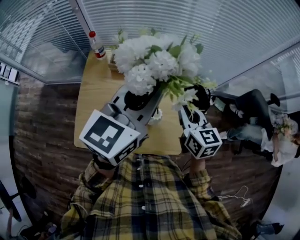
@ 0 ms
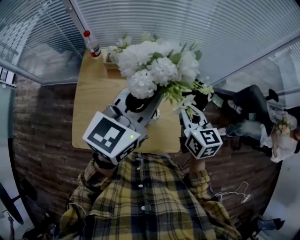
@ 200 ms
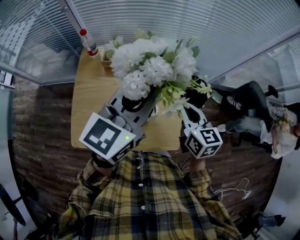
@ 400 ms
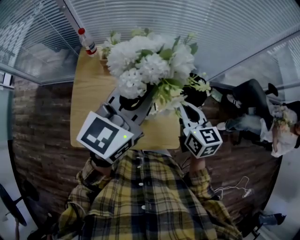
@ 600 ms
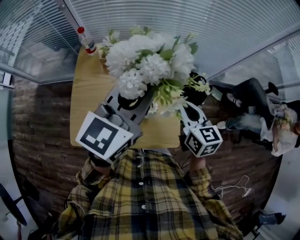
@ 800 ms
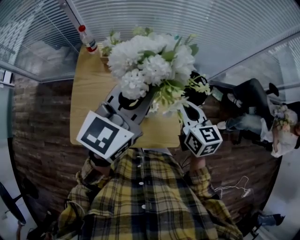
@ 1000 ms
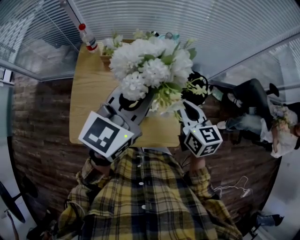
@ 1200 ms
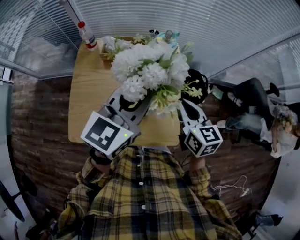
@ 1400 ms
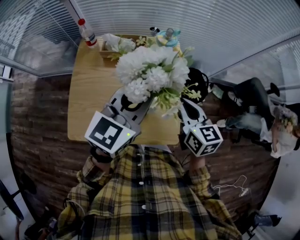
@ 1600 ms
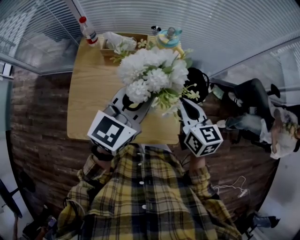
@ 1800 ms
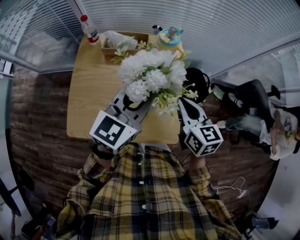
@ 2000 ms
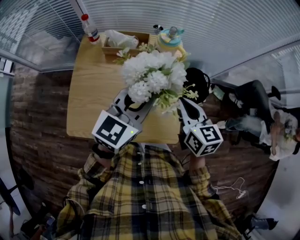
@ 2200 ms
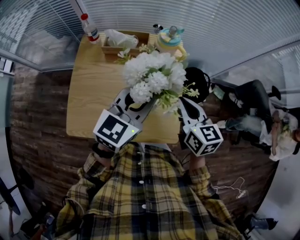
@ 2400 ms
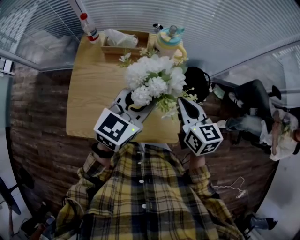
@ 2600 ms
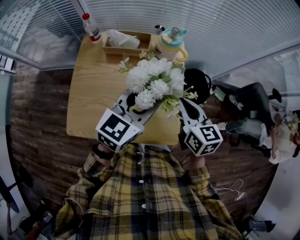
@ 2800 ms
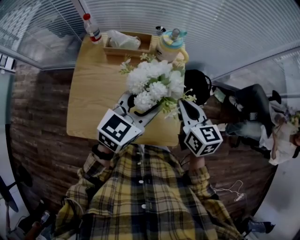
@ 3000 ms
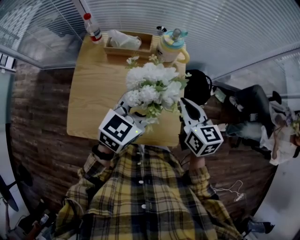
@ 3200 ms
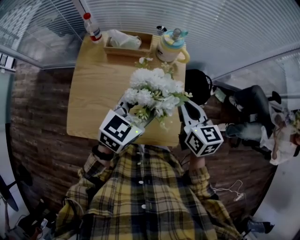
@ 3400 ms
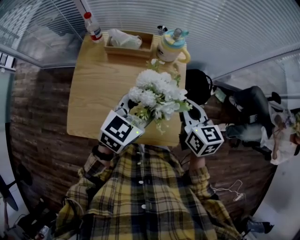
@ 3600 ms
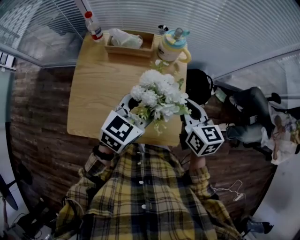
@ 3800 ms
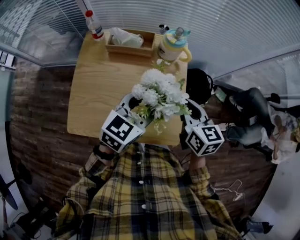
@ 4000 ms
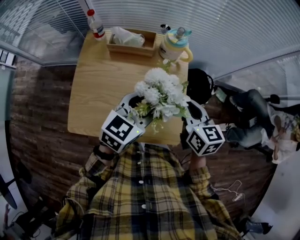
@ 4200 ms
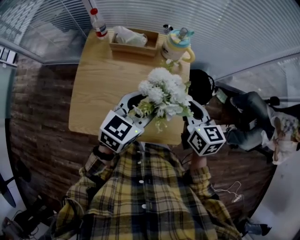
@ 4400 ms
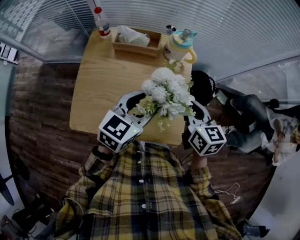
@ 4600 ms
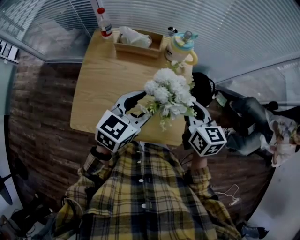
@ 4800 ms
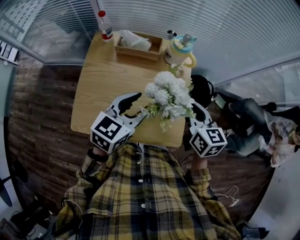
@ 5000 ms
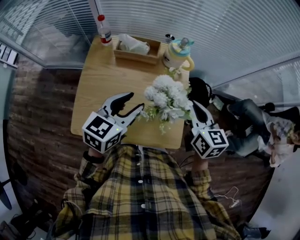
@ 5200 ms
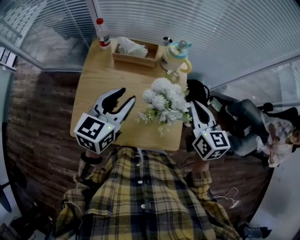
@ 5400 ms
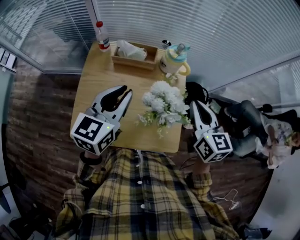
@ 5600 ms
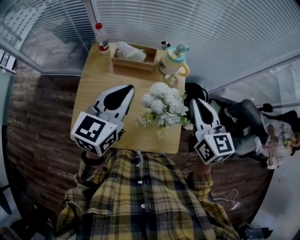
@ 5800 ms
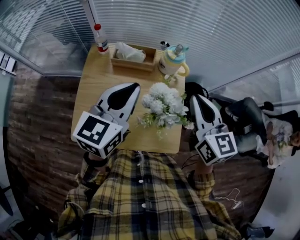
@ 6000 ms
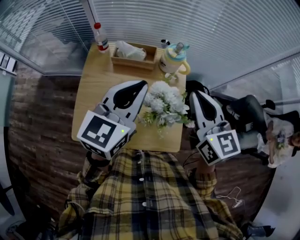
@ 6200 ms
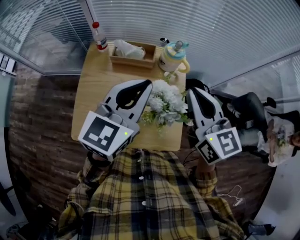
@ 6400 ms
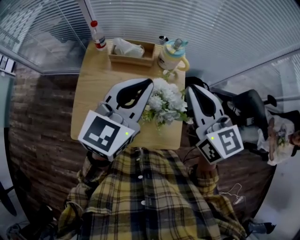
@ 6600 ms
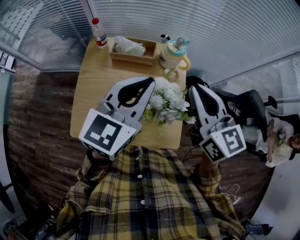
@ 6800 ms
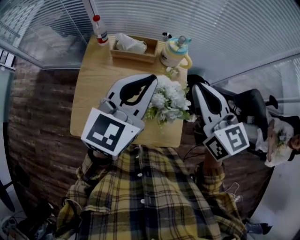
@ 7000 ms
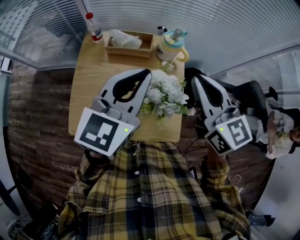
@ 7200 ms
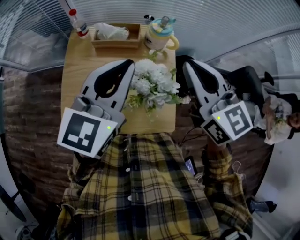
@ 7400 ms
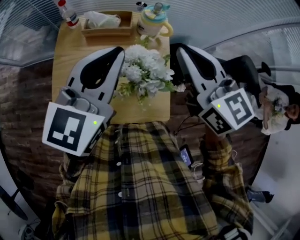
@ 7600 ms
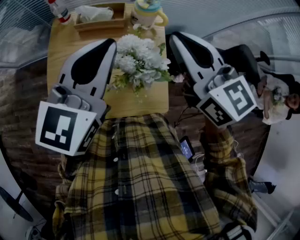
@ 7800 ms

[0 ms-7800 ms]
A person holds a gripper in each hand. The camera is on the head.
0 ms to 1600 ms: The left gripper moves downward, about 10 cm; the right gripper shifts by about 5 cm.
1600 ms to 3200 ms: The left gripper shifts about 10 cm downward, and opens.
3200 ms to 4600 ms: The grippers move only a little.
4600 ms to 6200 ms: The grippers both shift upward by about 15 cm. The left gripper closes up.
6200 ms to 7800 ms: The grippers stay close to where they were, moving slightly.

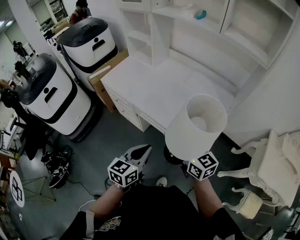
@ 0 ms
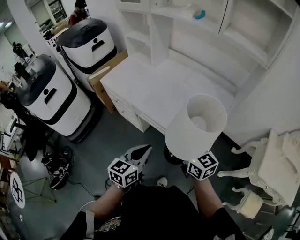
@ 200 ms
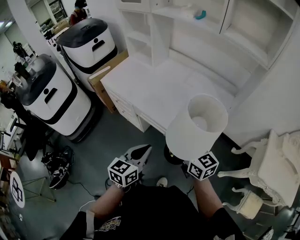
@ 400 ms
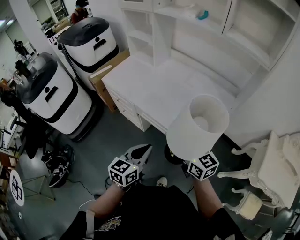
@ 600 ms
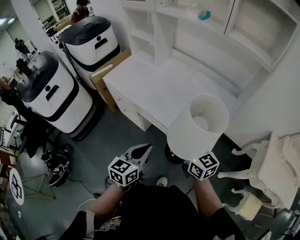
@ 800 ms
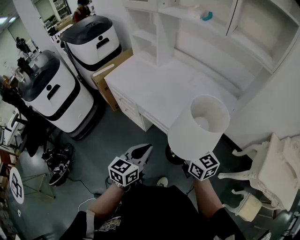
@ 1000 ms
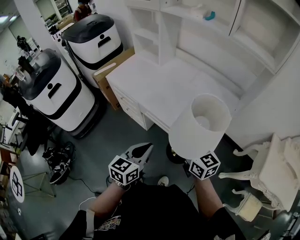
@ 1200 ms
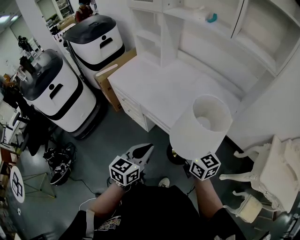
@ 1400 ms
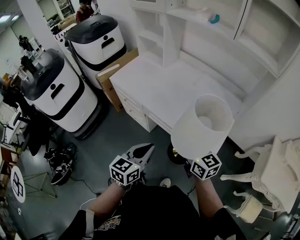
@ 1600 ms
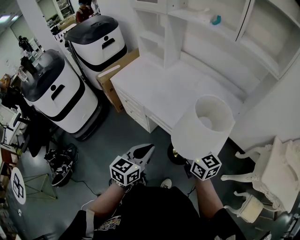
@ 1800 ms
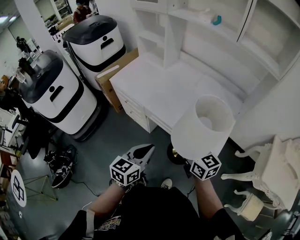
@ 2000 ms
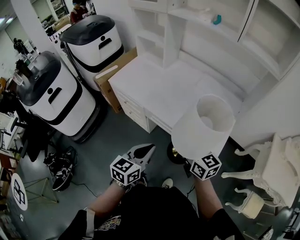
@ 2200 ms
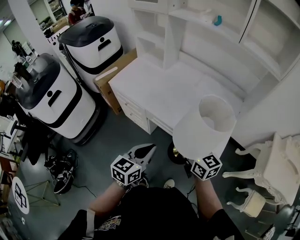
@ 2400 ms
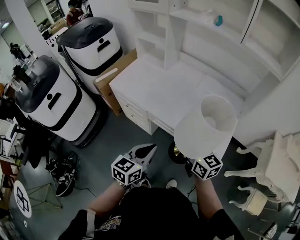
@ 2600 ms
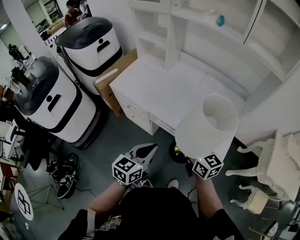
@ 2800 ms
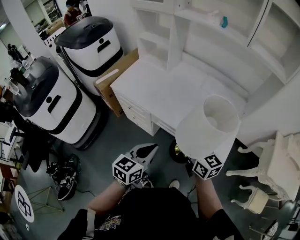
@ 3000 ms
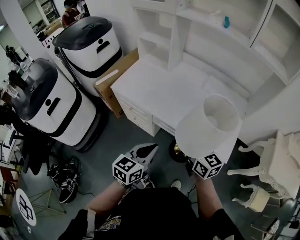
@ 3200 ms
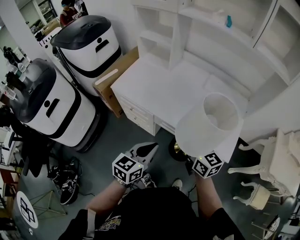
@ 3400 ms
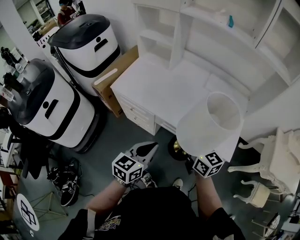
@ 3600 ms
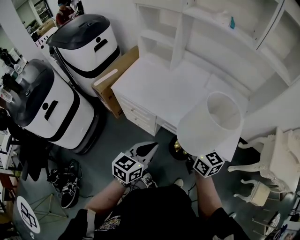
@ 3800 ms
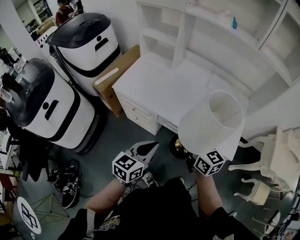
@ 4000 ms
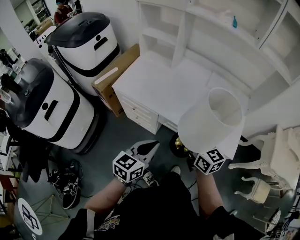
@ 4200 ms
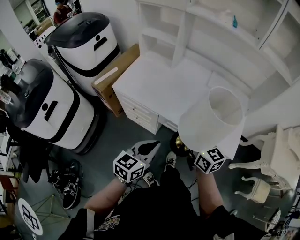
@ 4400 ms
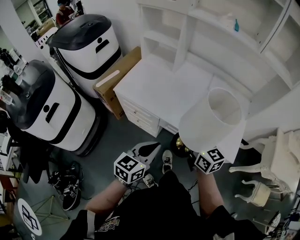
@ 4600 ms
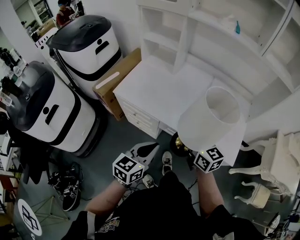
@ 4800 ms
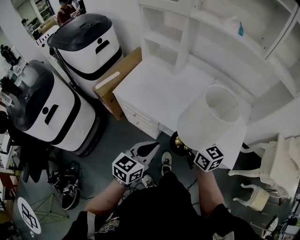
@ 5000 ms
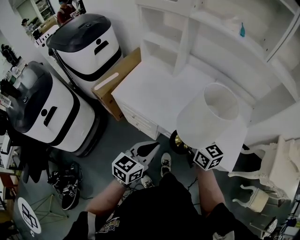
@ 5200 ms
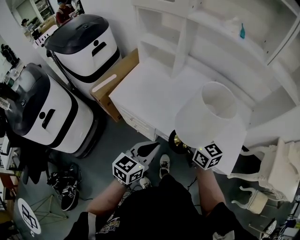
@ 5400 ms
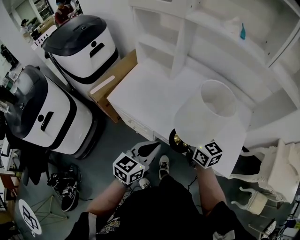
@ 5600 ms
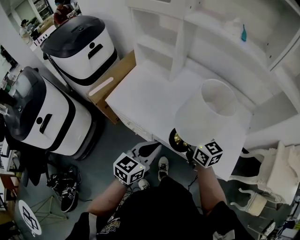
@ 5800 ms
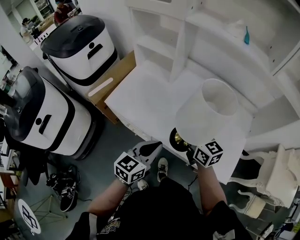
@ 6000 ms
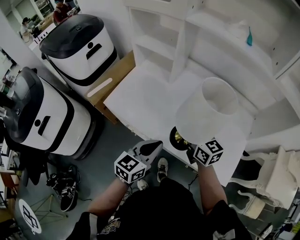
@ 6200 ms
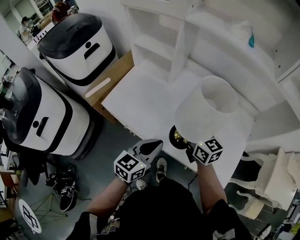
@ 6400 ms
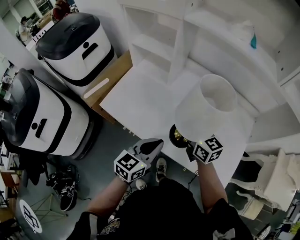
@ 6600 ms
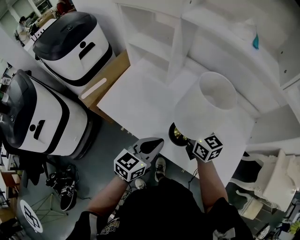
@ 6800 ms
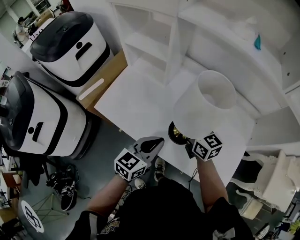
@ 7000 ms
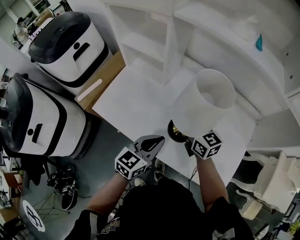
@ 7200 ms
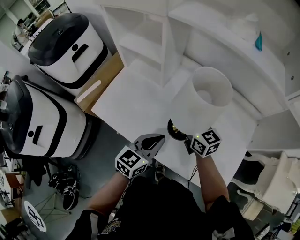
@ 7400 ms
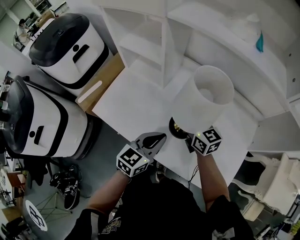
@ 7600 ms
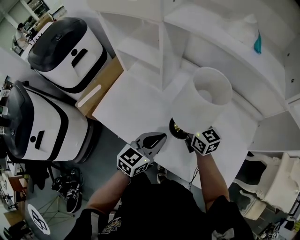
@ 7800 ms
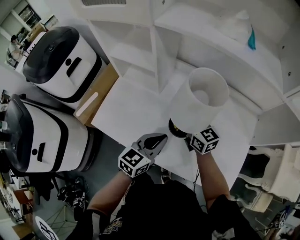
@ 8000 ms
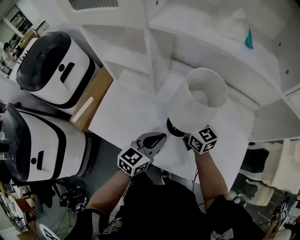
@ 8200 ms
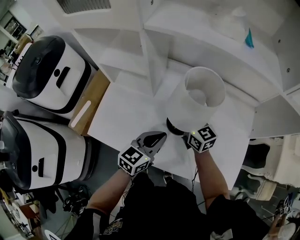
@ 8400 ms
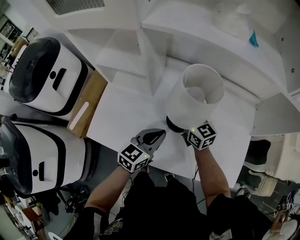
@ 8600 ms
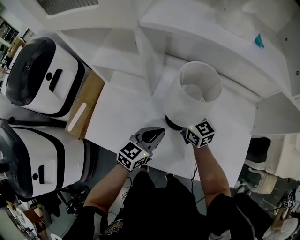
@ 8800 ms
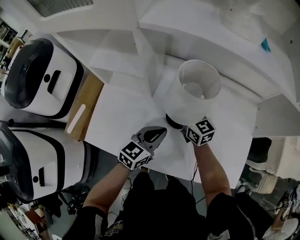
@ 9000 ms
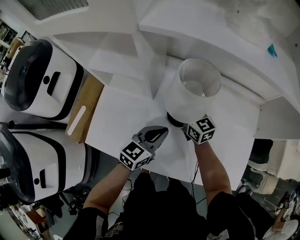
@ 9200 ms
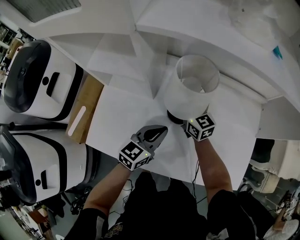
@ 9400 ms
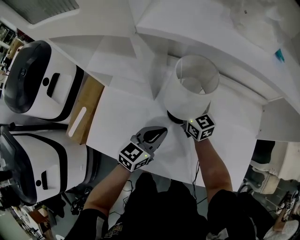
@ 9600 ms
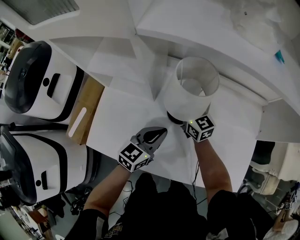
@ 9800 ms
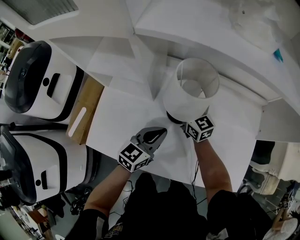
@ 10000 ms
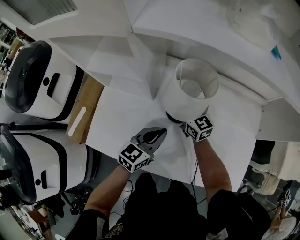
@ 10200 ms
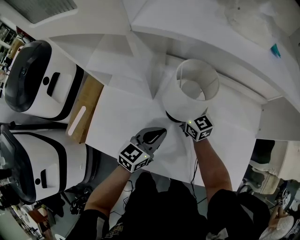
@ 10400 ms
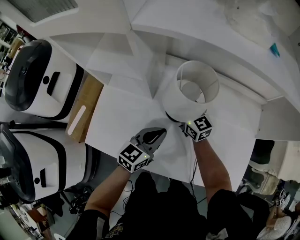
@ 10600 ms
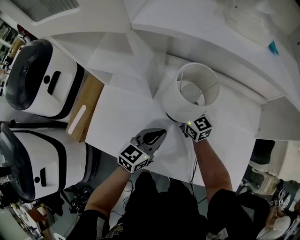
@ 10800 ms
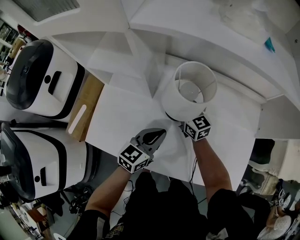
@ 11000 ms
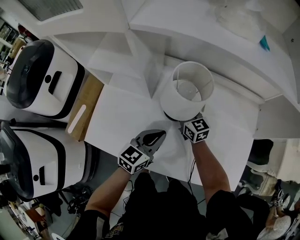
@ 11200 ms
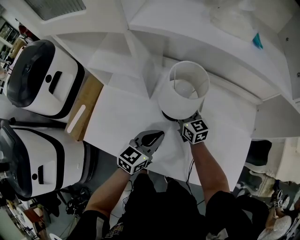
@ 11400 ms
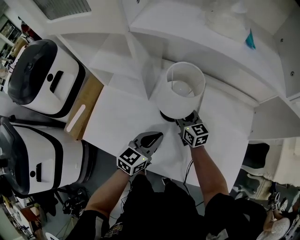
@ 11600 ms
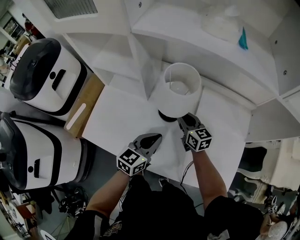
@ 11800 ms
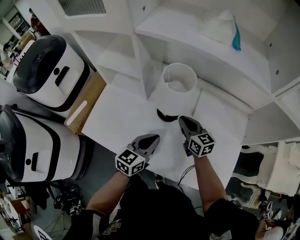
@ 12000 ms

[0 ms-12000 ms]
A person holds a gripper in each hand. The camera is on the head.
0 ms to 1600 ms: There are only small adjustments of the grippers.
1600 ms to 3000 ms: Both grippers move to the left and forward, roughly 10 cm.
3000 ms to 4400 ms: The grippers both shift to the left by roughly 10 cm.
4400 ms to 6000 ms: Both grippers move forward, about 15 cm.
6000 ms to 7600 ms: The right gripper moves forward, about 15 cm. Meanwhile the left gripper heads forward and to the right, covering roughly 15 cm.
7600 ms to 9000 ms: The right gripper shifts roughly 10 cm forward and downward. The left gripper goes some 10 cm forward.
9000 ms to 10400 ms: The grippers stay close to where they were, moving slightly.
10400 ms to 12000 ms: The right gripper goes roughly 15 cm backward and to the right; the left gripper heads backward, covering roughly 5 cm.

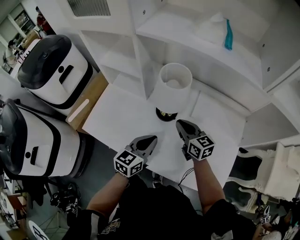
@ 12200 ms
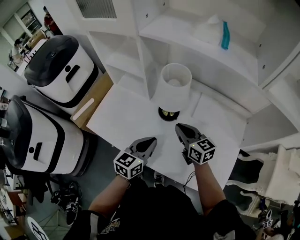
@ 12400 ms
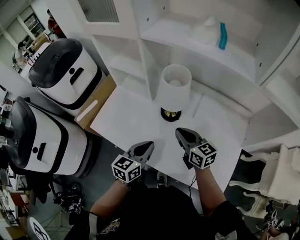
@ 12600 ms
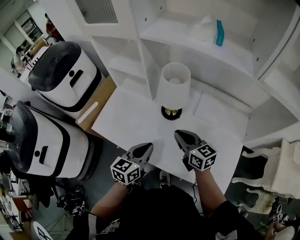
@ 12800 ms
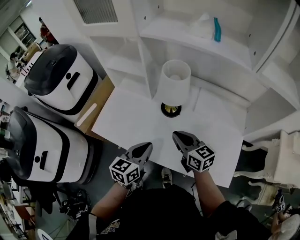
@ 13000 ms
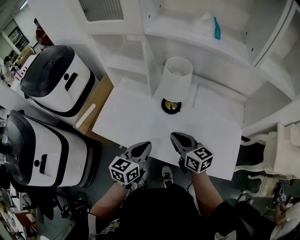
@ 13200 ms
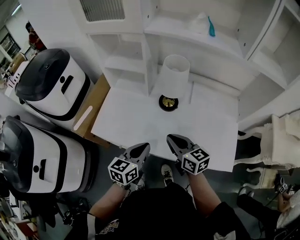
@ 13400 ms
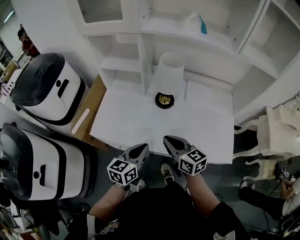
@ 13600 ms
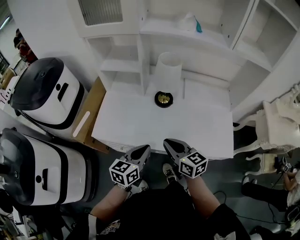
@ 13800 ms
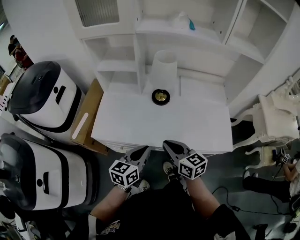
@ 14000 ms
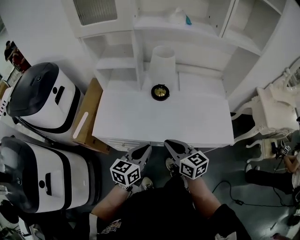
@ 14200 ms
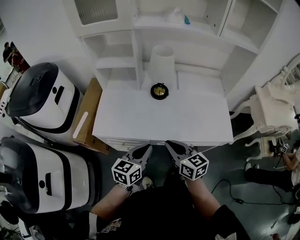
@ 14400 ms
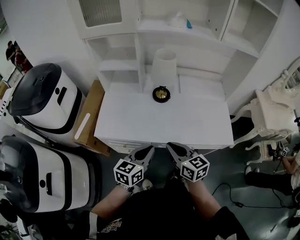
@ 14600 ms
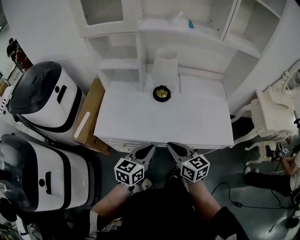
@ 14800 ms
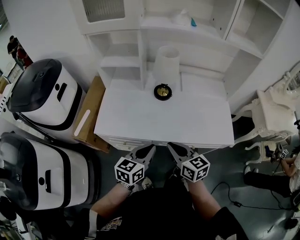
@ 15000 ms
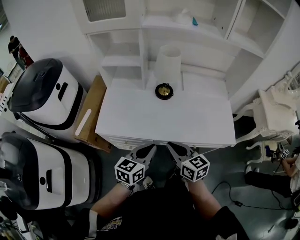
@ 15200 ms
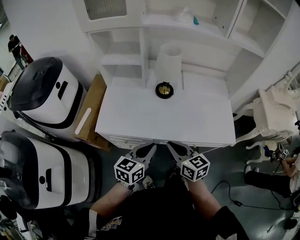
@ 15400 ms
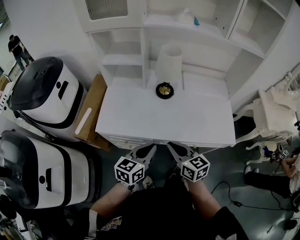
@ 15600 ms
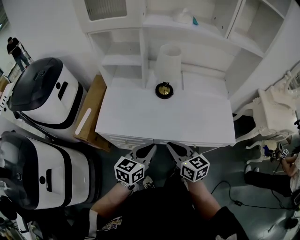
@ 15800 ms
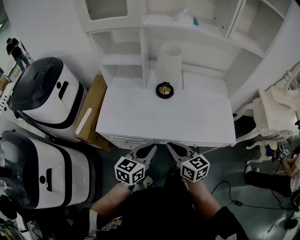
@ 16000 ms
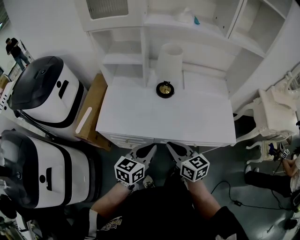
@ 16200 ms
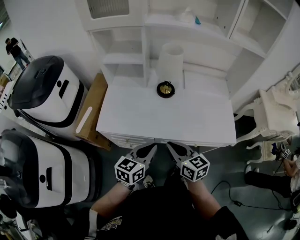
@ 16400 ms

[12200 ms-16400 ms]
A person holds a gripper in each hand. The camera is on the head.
12200 ms to 13600 ms: The two grippers go roughly 20 cm backward and to the left.
13600 ms to 15000 ms: Both grippers move backward, about 10 cm.
15000 ms to 16400 ms: There are only small adjustments of the grippers.
